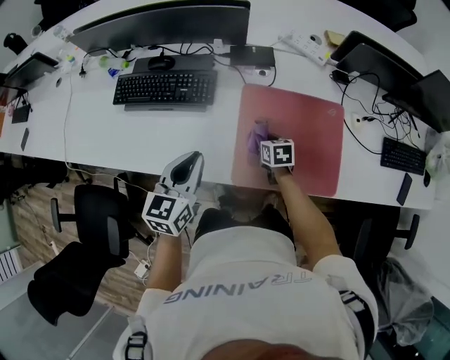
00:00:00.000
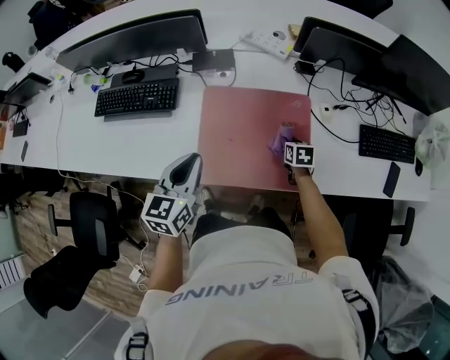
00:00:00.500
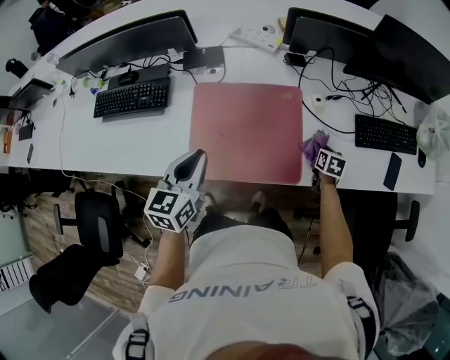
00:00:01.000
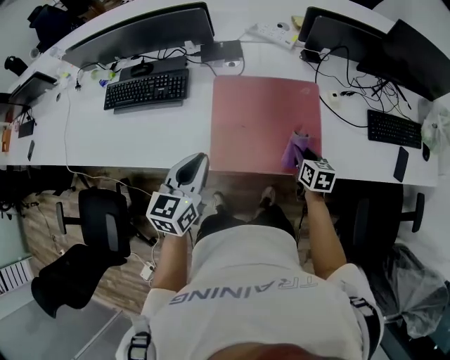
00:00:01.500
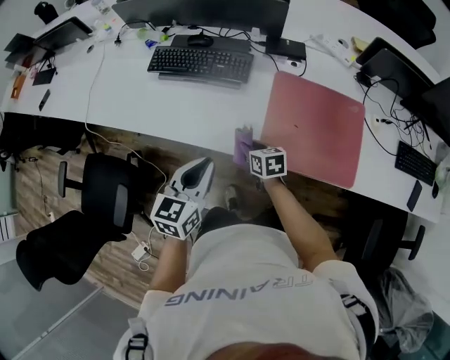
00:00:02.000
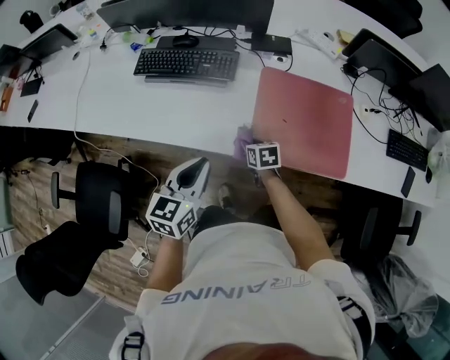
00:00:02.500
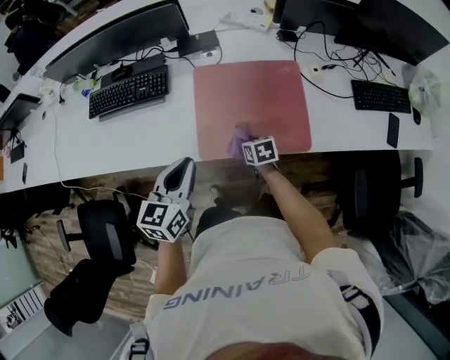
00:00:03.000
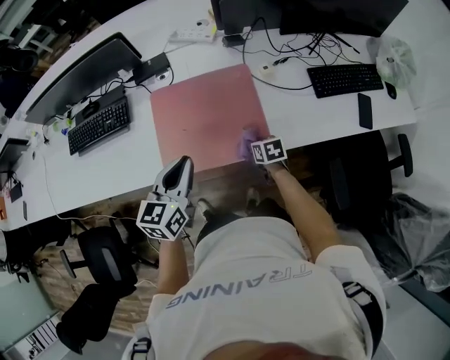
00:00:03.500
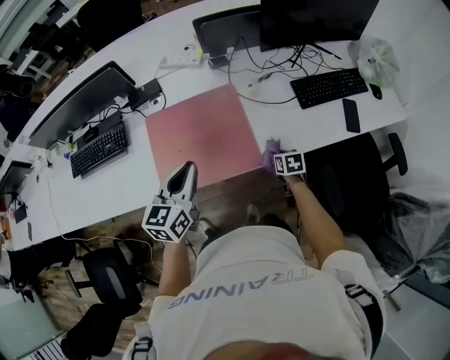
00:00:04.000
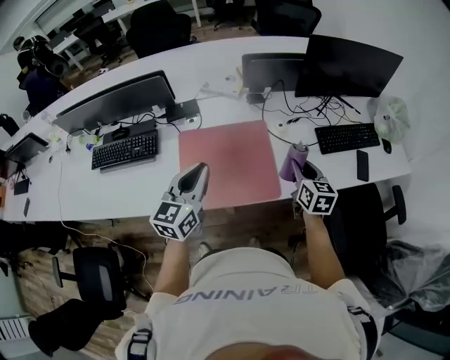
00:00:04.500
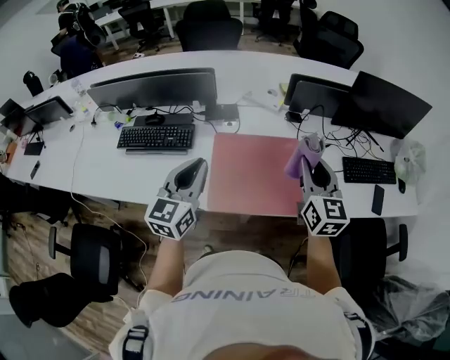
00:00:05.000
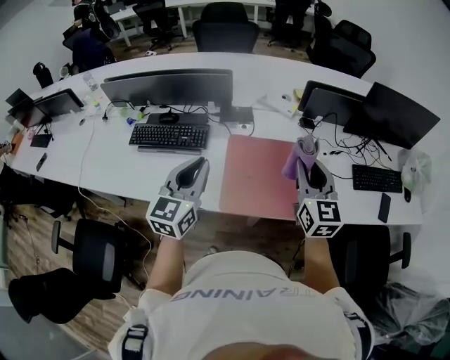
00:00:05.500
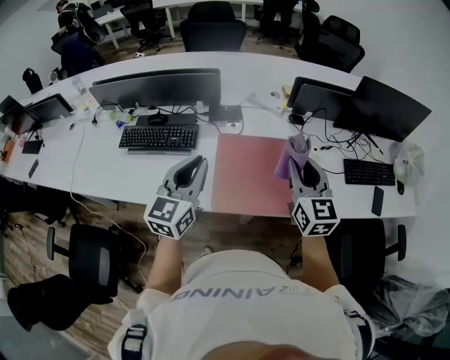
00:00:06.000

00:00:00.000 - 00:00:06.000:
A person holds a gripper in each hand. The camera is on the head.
00:00:02.000 - 00:00:04.000: The right gripper shifts by approximately 50 cm, and changes its angle by some 40 degrees, while the left gripper ends up about 35 cm from where it was, and turns by about 20 degrees.
00:00:04.000 - 00:00:06.000: The right gripper is displaced upward and to the left by roughly 50 cm, and tips its fingers upward by roughly 50 degrees; the left gripper goes roughly 25 cm to the left and upward, and turns by some 20 degrees.

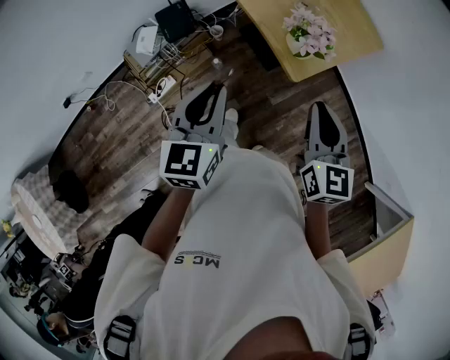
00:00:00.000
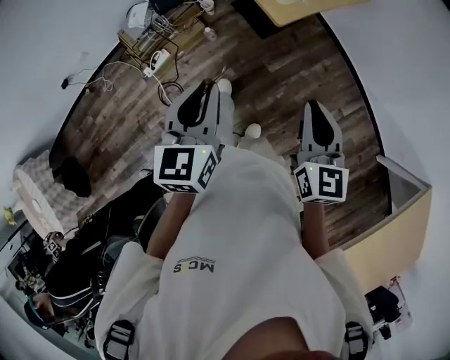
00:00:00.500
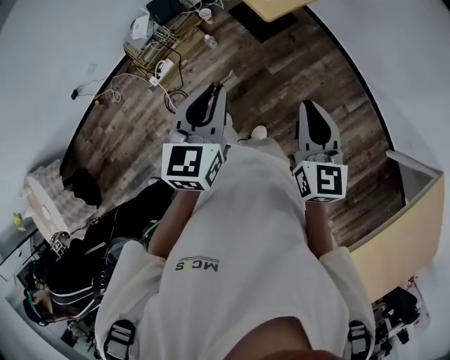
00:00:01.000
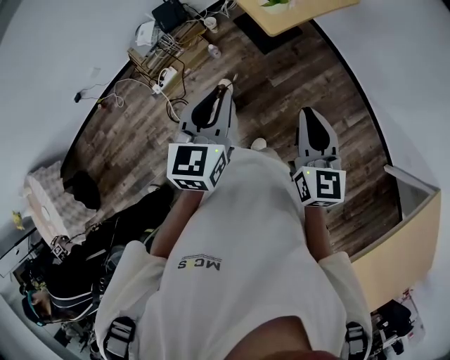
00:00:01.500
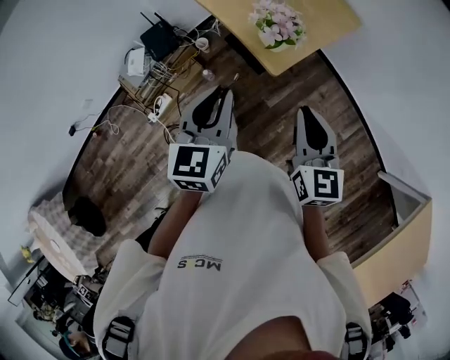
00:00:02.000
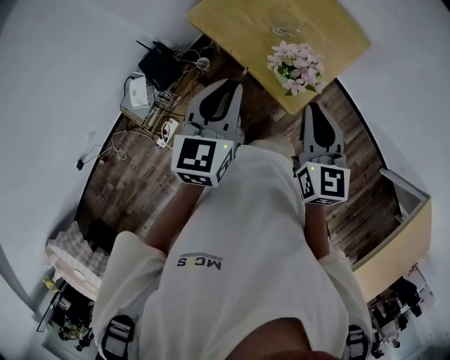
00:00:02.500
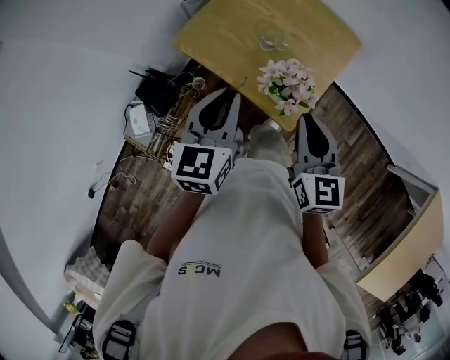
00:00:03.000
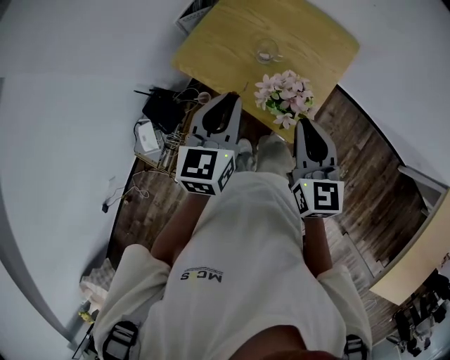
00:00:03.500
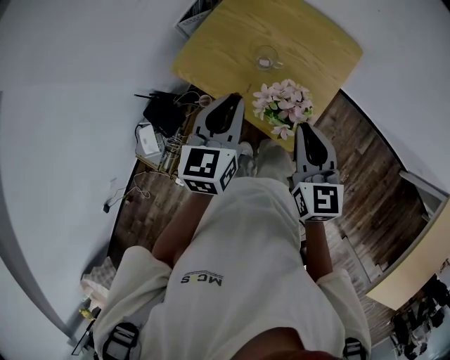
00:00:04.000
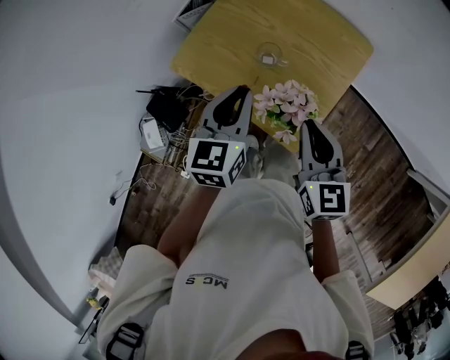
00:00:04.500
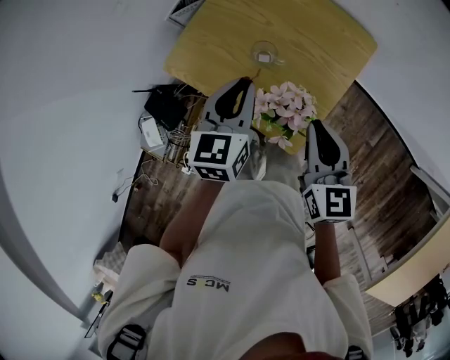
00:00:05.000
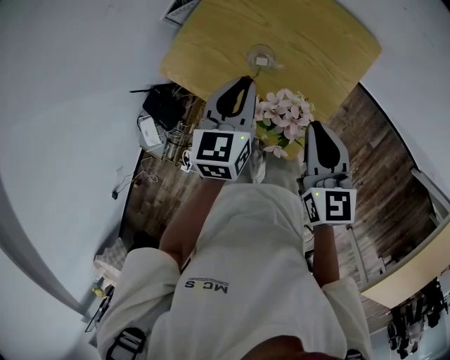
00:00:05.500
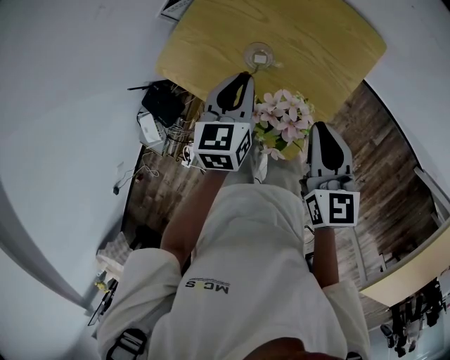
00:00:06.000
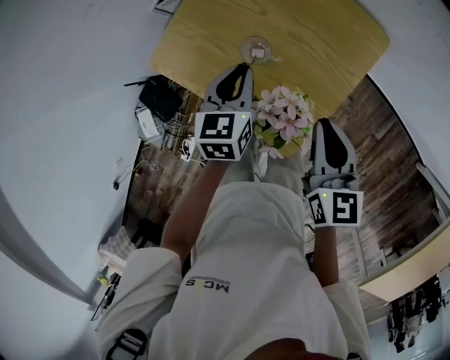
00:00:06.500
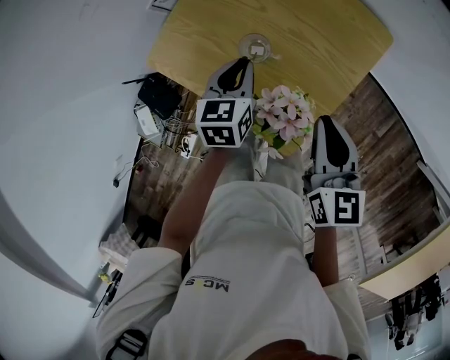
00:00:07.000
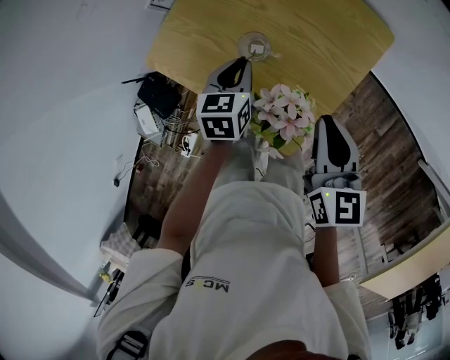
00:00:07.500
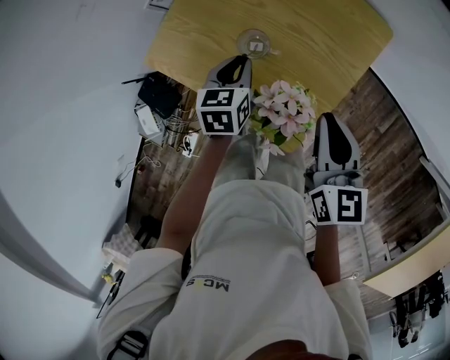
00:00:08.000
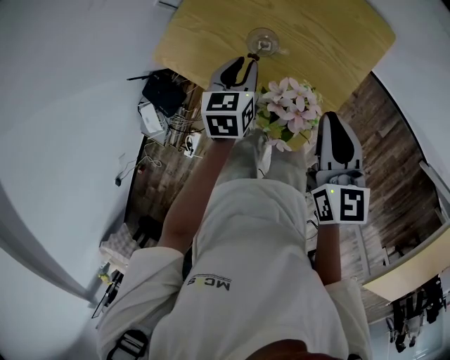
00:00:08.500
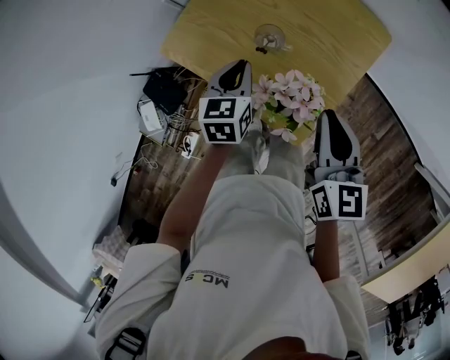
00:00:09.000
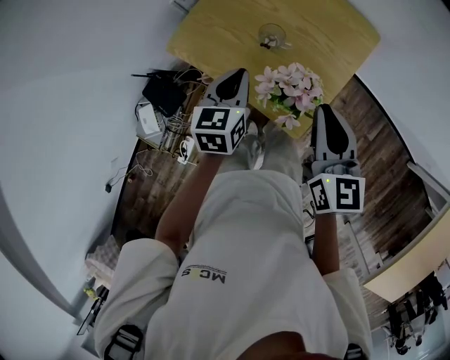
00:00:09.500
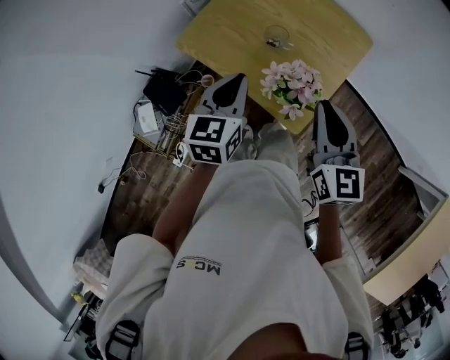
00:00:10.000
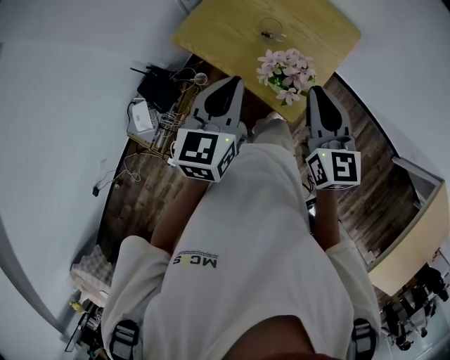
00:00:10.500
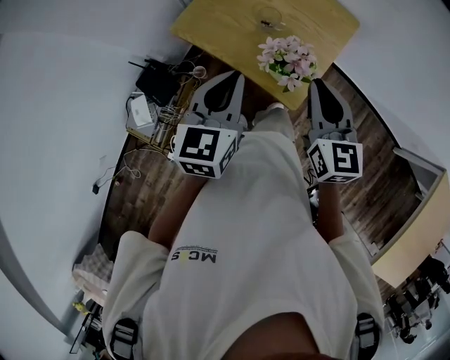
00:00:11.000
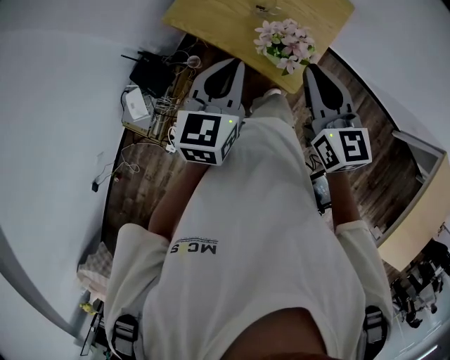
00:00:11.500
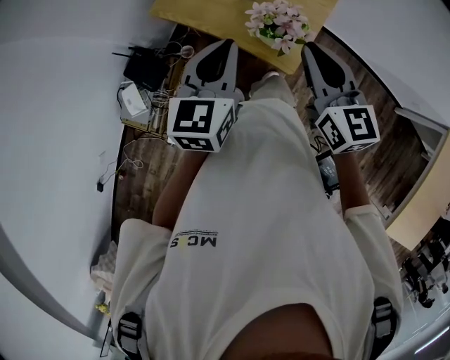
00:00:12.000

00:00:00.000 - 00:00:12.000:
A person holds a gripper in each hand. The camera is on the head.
00:00:00.000 - 00:00:02.000: The right gripper heads to the right, covering some 5 cm, and goes backward and returns, some 30 cm each way; the left gripper heads to the right, covering about 10 cm, and reaches approximately 25 cm backward, then returns.
00:00:02.000 - 00:00:04.000: Both grippers move forward, approximately 30 cm.
00:00:04.000 - 00:00:06.000: The left gripper shifts about 20 cm downward, forward and to the right, while the right gripper is displaced forward, downward and to the right by some 15 cm.
00:00:06.000 - 00:00:08.000: The left gripper travels downward by about 10 cm.
00:00:08.000 - 00:00:10.000: The left gripper moves upward and backward, about 25 cm, while the right gripper heads upward, backward and to the left, covering roughly 15 cm.
00:00:10.000 - 00:00:12.000: The left gripper is displaced backward and upward by some 10 cm, while the right gripper goes roughly 5 cm backward.

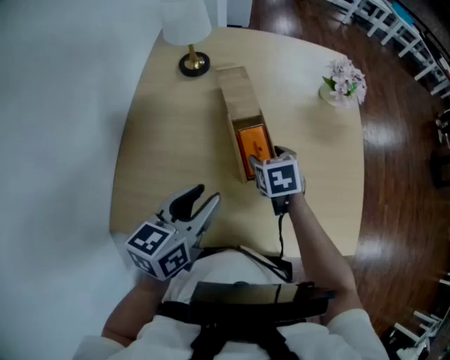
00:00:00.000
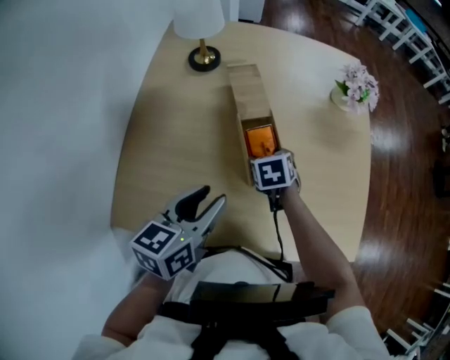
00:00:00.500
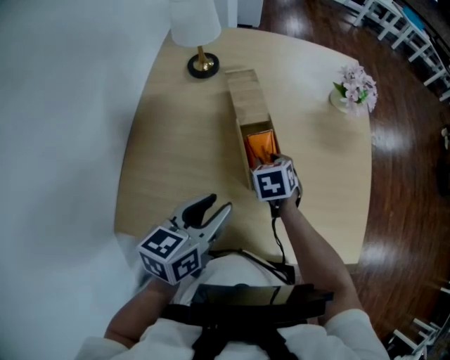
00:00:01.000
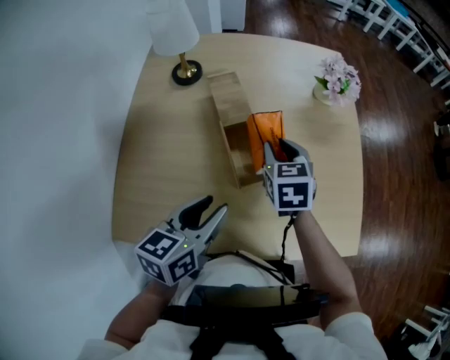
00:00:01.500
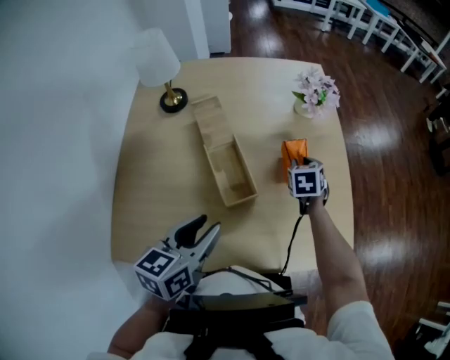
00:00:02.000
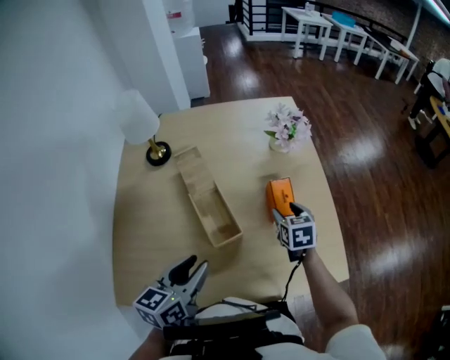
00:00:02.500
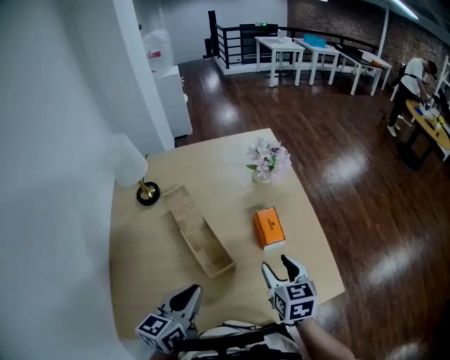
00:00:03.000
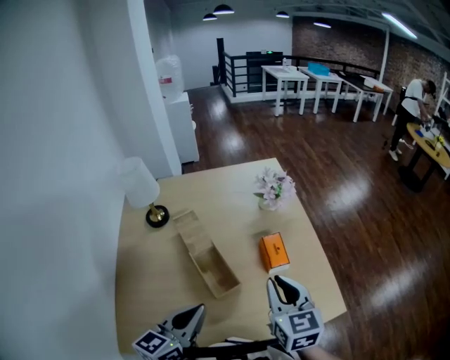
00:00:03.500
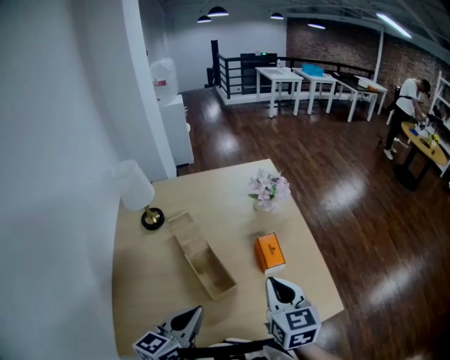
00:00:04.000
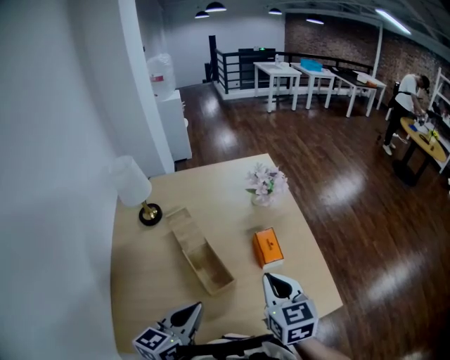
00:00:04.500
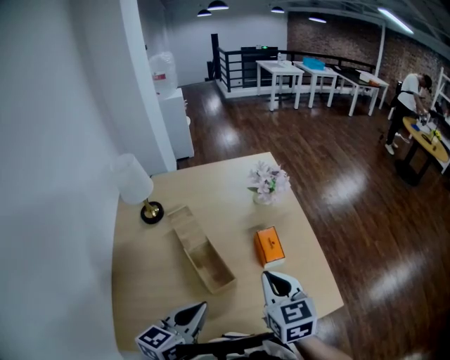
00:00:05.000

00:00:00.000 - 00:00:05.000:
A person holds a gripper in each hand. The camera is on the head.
00:00:00.000 - 00:00:02.500: The right gripper shifts about 20 cm to the right, changes its angle by about 20 degrees, and closes, then reopens. Meanwhile the left gripper goes approximately 5 cm to the right.
00:00:02.500 - 00:00:05.000: The left gripper closes up; the right gripper moves upward and backward, some 25 cm, and closes its fingers.

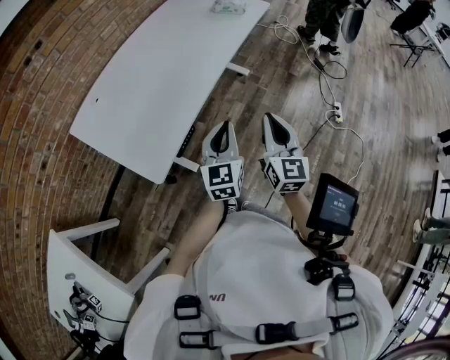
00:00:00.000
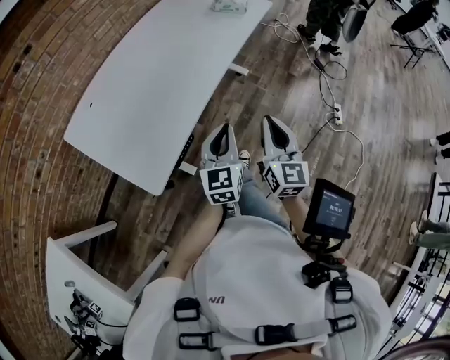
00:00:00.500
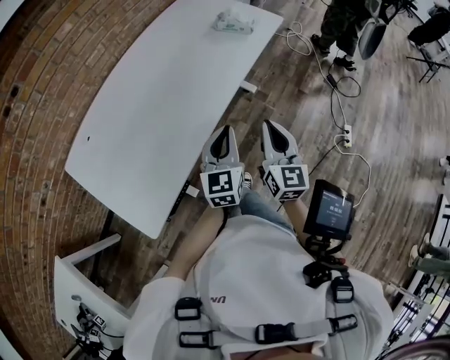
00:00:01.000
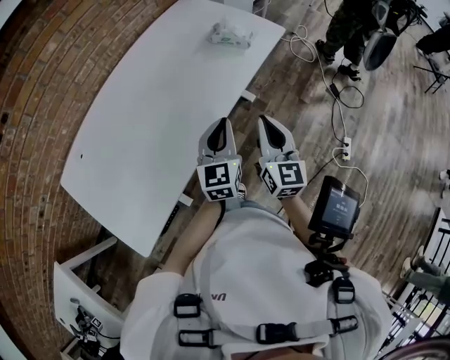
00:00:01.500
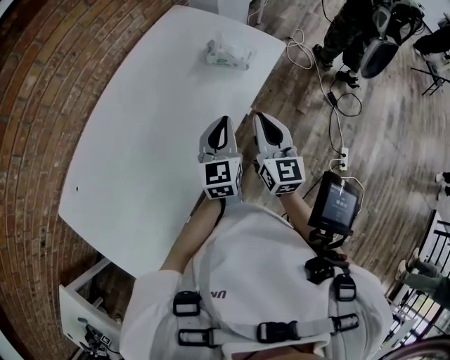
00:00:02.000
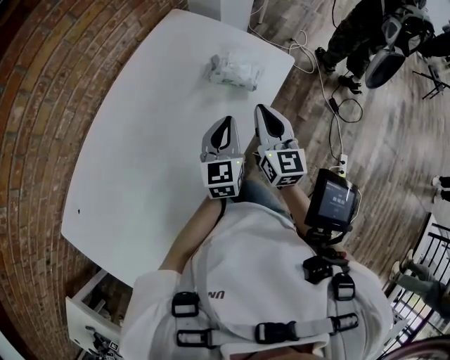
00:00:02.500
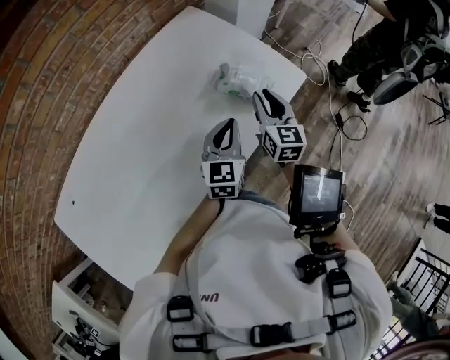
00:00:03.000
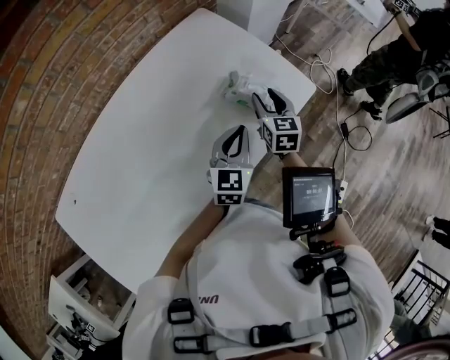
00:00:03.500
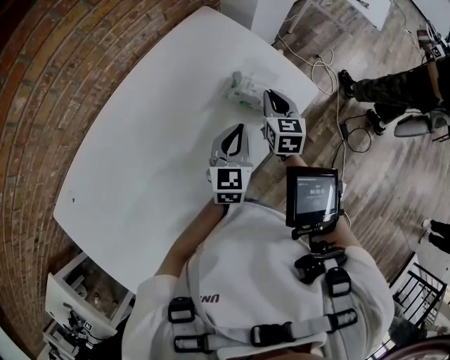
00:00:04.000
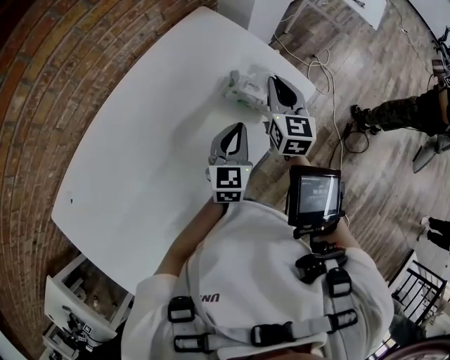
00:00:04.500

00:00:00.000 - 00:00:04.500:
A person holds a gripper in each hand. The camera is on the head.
00:00:00.000 - 00:00:02.000: The pair of grippers is taken forward, about 40 cm.
00:00:02.000 - 00:00:04.500: The left gripper moves forward, roughly 15 cm, while the right gripper heads forward, covering some 30 cm, and opens and closes again.
